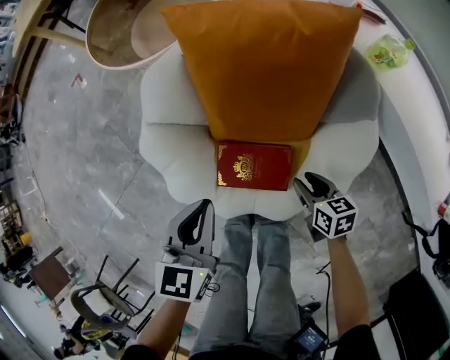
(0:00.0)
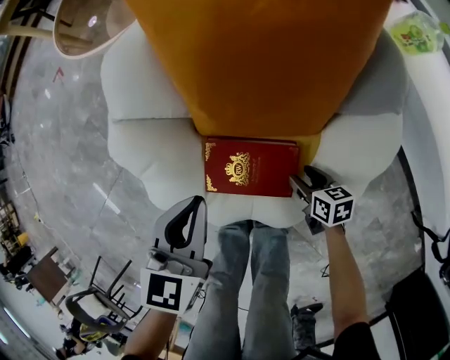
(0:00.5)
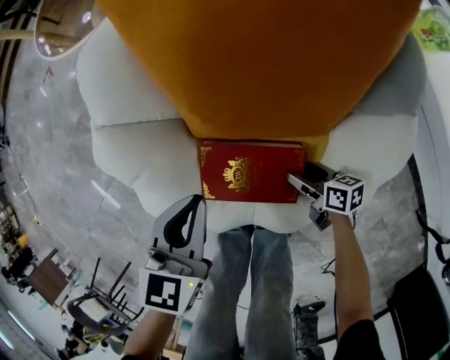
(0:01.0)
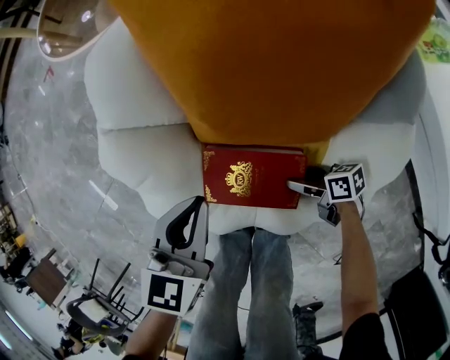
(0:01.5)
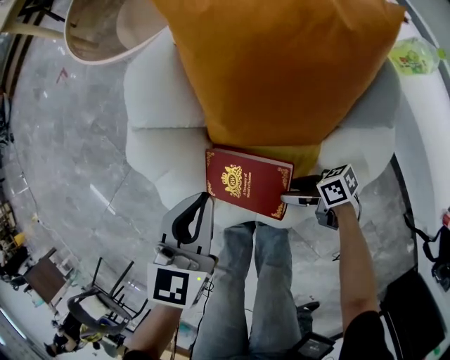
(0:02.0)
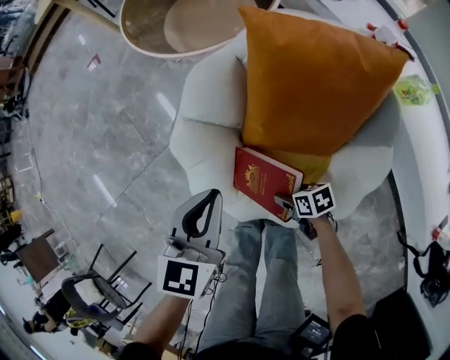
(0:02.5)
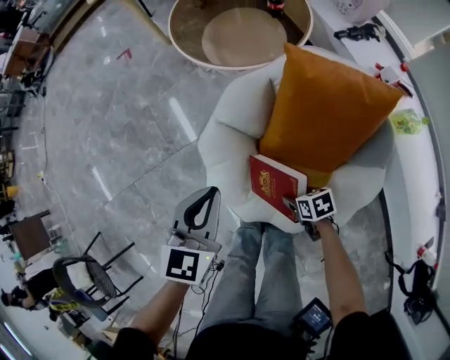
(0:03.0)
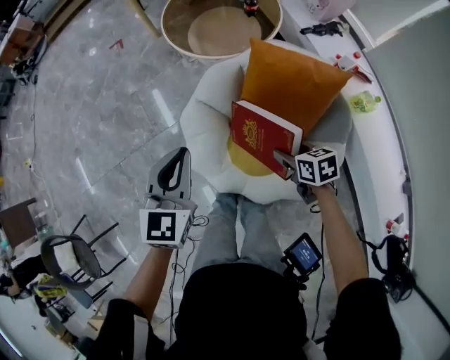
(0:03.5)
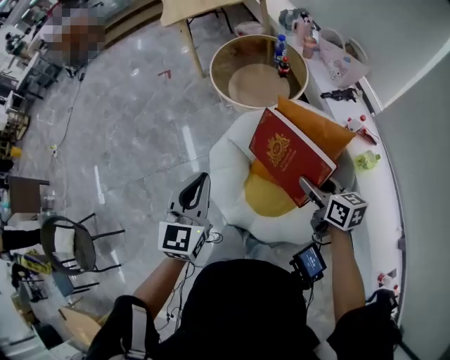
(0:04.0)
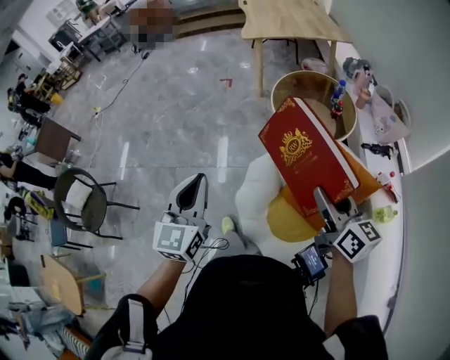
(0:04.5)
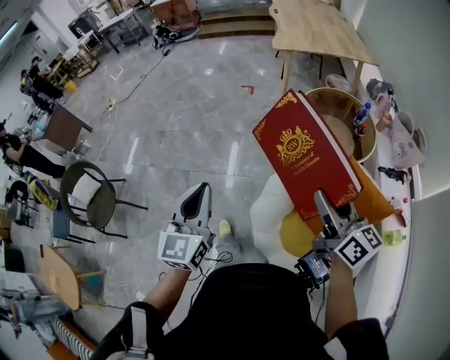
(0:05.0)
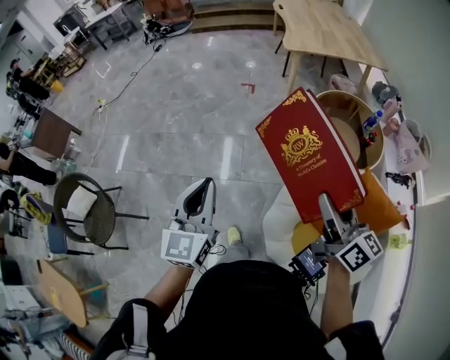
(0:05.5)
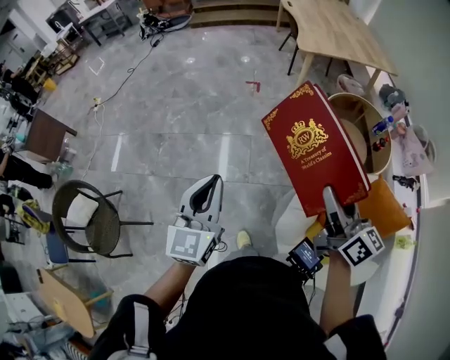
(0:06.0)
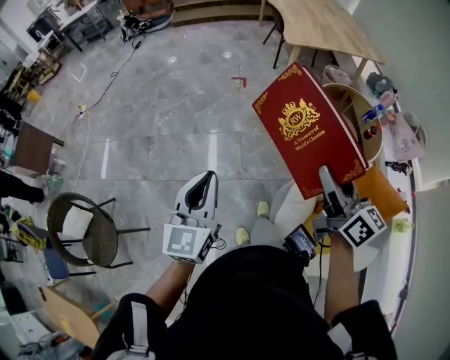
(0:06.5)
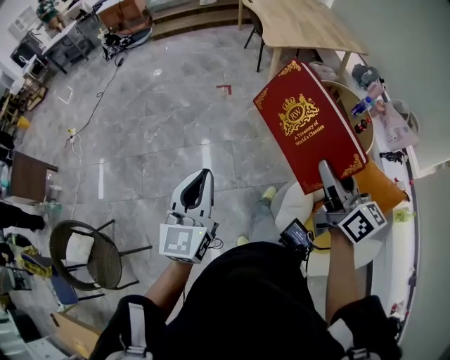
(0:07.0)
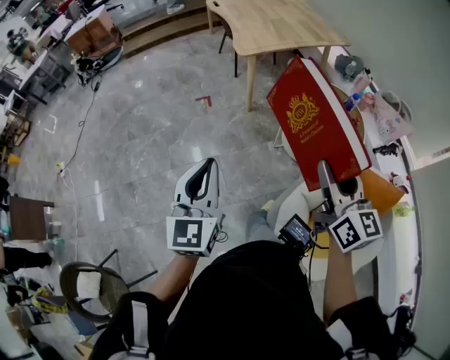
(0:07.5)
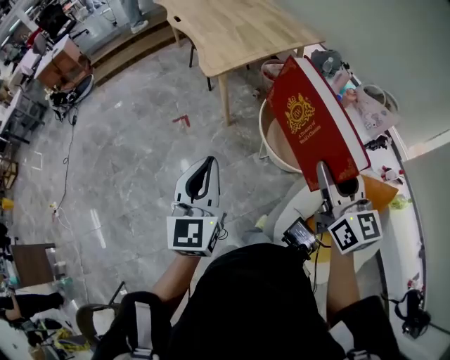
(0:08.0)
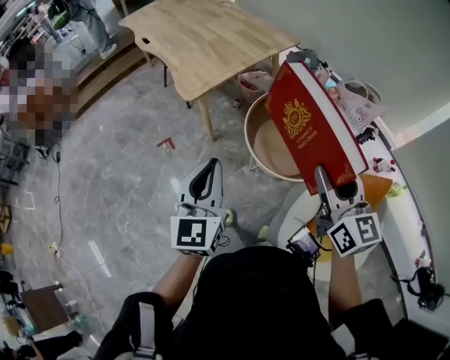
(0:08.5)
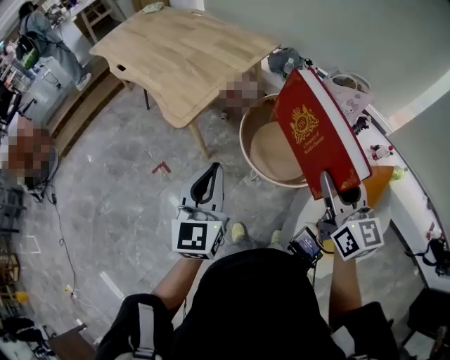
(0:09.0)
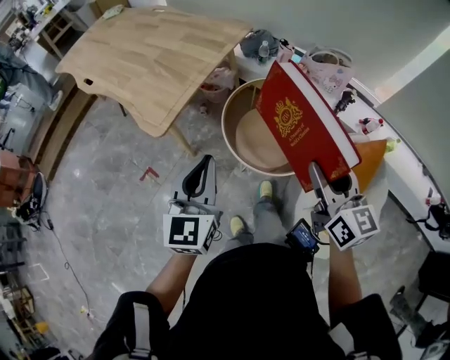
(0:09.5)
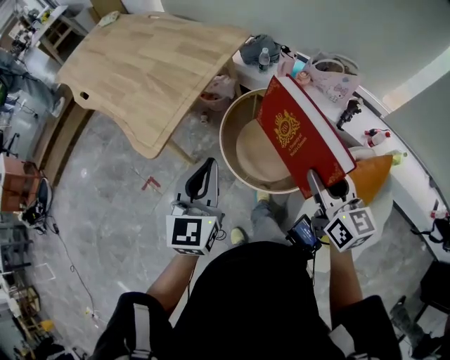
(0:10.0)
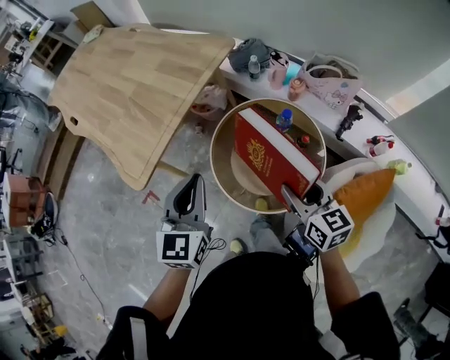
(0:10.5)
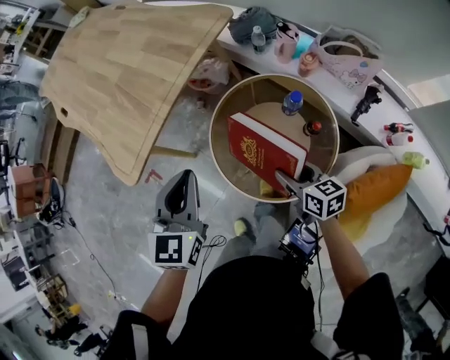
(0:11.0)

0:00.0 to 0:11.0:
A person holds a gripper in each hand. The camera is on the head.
0:00.0 to 0:02.0: The right gripper travels downward and to the left by about 10 cm, and swivels roughly 50 degrees, while the left gripper goes some 5 cm downward.
0:02.0 to 0:03.5: The right gripper goes approximately 35 cm upward, and rotates approximately 40 degrees. Meanwhile the left gripper travels upward and to the left by about 35 cm, and changes its angle by about 20 degrees.
0:03.5 to 0:05.5: The left gripper heads to the left and upward, covering about 40 cm, and changes its angle by some 40 degrees; the right gripper heads upward, to the left and forward, covering approximately 50 cm, and tilts its fingers some 50 degrees upward.
0:05.5 to 0:07.5: The grippers both shift forward by some 25 cm. The right gripper changes its angle by some 40 degrees.
0:07.5 to 0:09.0: The right gripper ends up some 20 cm from where it was, and rotates about 30 degrees. Meanwhile the left gripper changes place by about 35 cm, and changes its angle by about 30 degrees.
0:09.0 to 0:11.0: The right gripper heads downward and forward, covering about 40 cm, and rotates approximately 40 degrees. The left gripper heads forward, to the right and downward, covering approximately 35 cm.

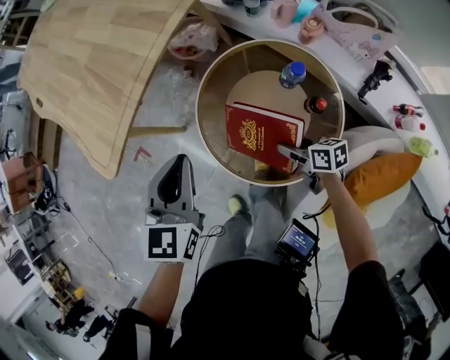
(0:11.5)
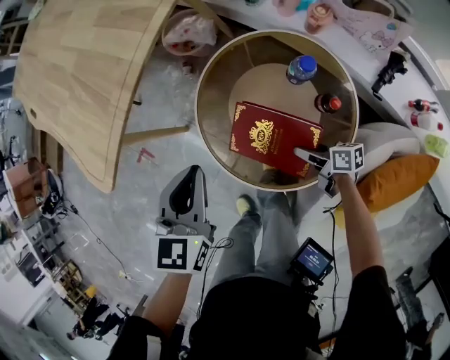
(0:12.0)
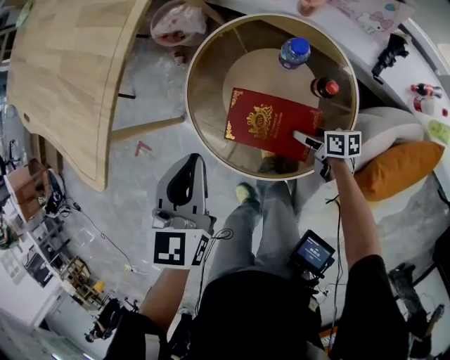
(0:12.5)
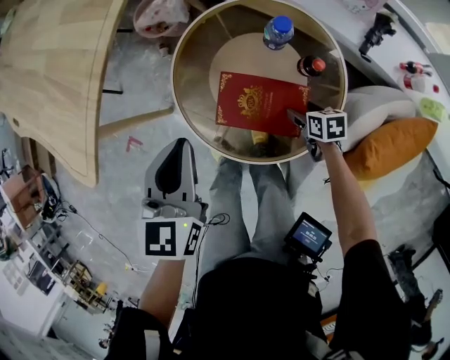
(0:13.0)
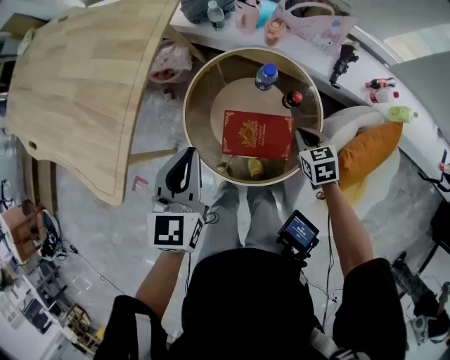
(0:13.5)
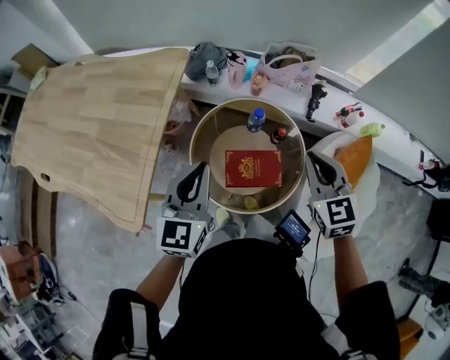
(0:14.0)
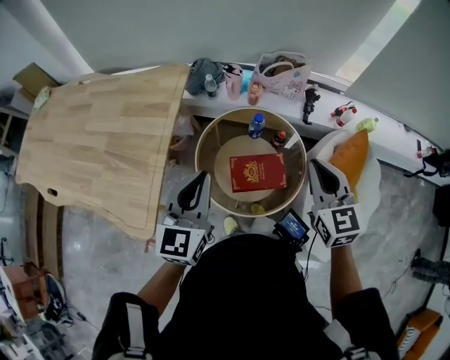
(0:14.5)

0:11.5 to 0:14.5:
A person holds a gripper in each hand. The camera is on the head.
0:11.5 to 0:13.0: The left gripper travels downward by roughly 5 cm; the right gripper goes approximately 15 cm downward and to the right, and rotates approximately 30 degrees.
0:13.0 to 0:14.5: The right gripper is displaced upward by roughly 50 cm, tips its fingers upward by about 40 degrees, and closes up; the left gripper goes roughly 20 cm upward, and rotates approximately 30 degrees.

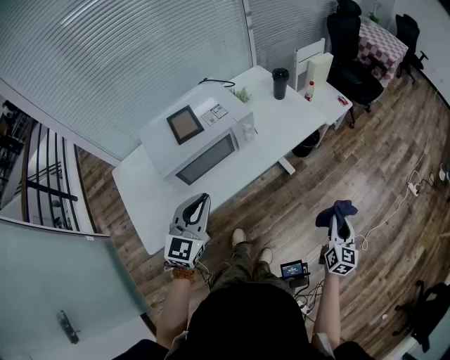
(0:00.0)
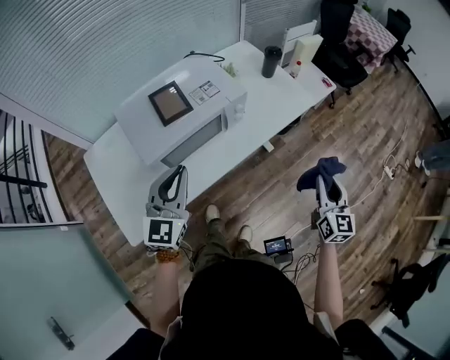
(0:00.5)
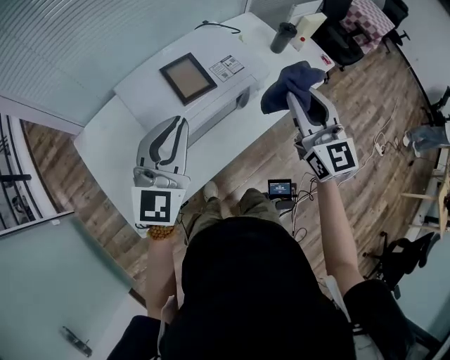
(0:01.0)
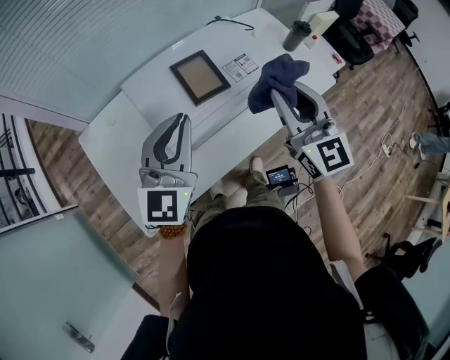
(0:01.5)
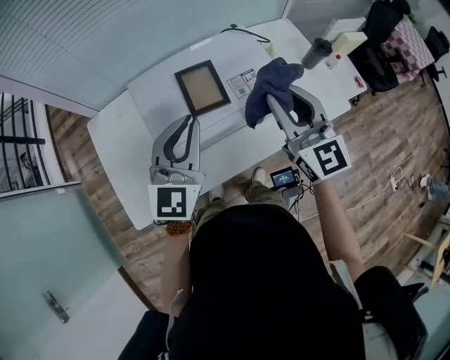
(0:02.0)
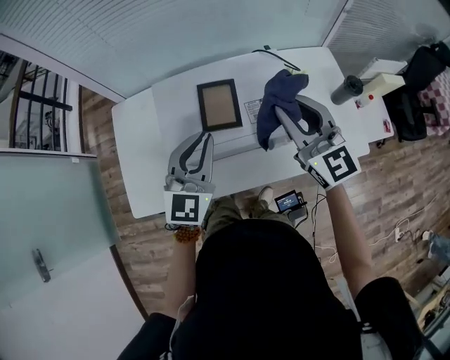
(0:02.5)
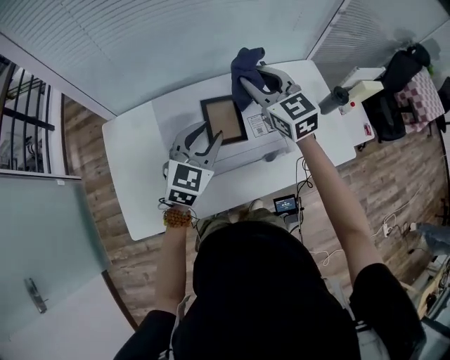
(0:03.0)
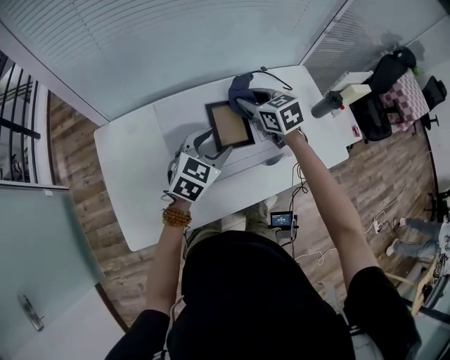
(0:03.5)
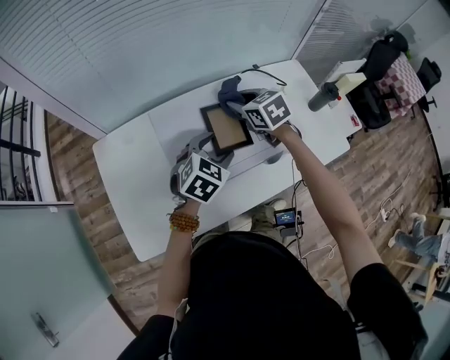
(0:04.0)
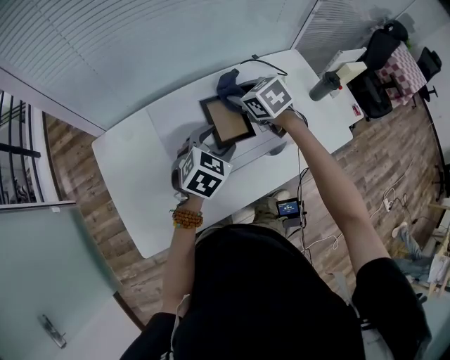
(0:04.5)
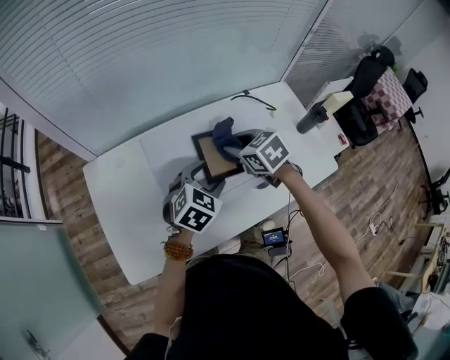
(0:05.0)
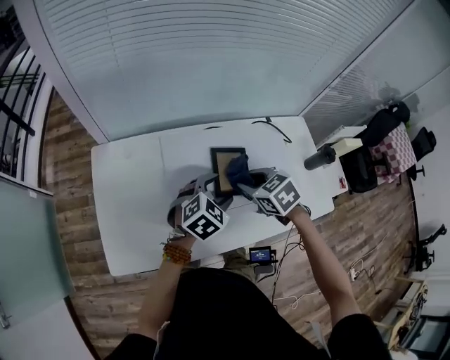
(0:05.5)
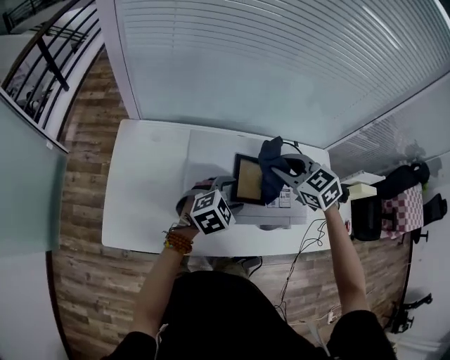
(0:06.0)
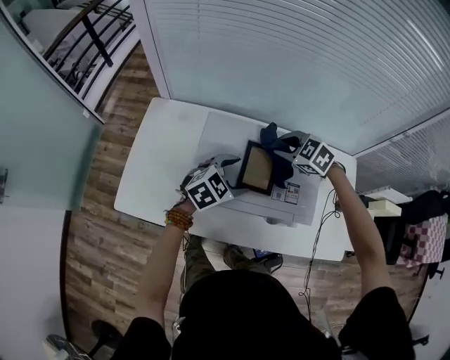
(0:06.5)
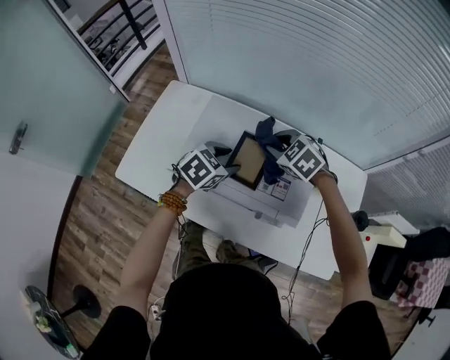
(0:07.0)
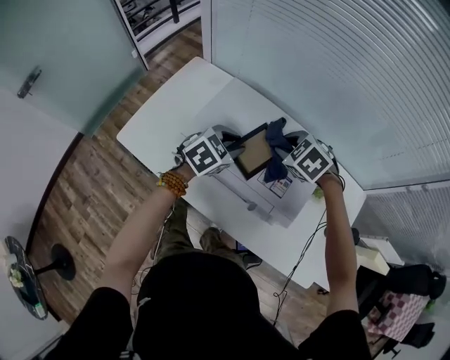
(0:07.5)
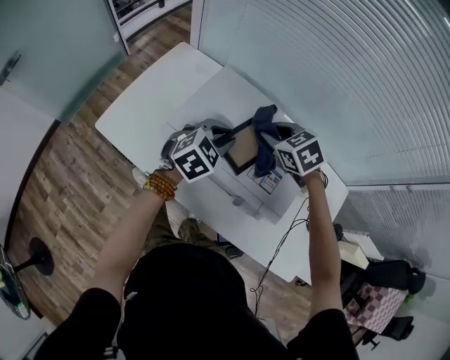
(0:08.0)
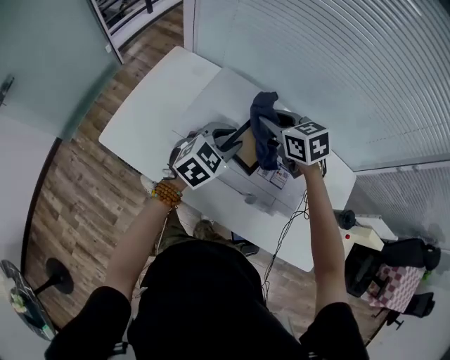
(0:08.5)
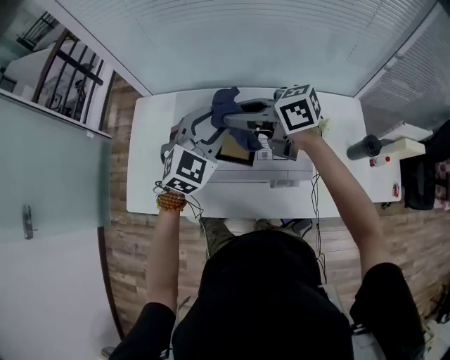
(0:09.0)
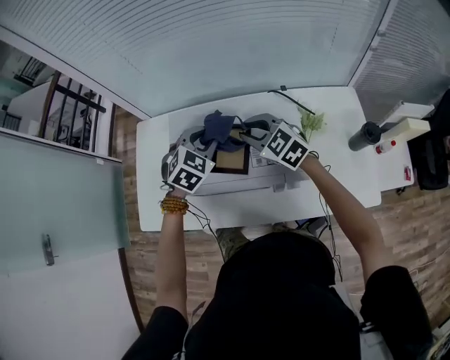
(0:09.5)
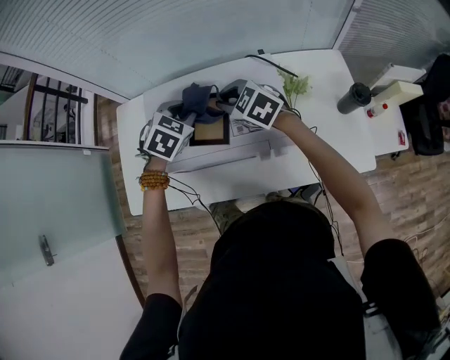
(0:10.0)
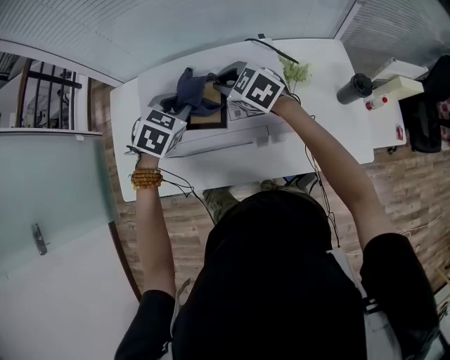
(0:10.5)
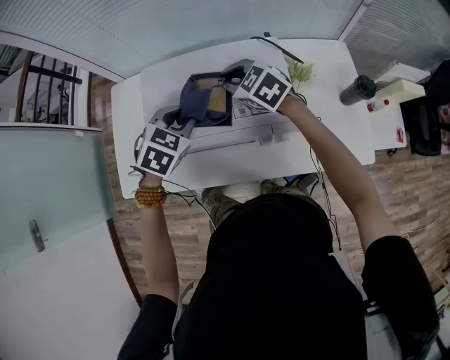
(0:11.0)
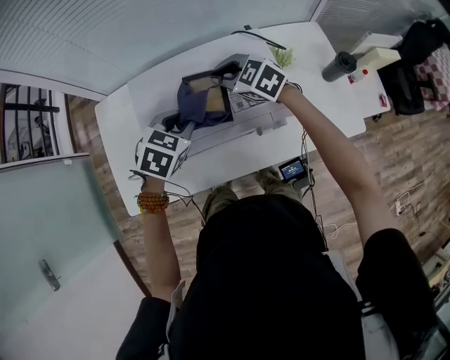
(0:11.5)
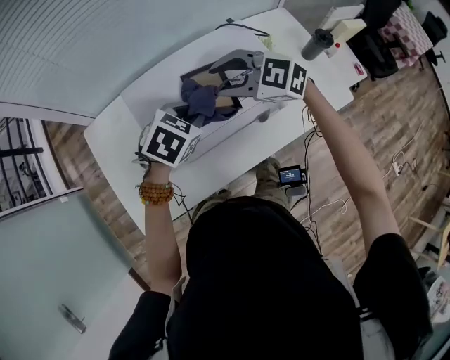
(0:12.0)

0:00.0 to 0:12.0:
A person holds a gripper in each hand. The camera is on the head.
0:00.0 to 0:02.0: The left gripper moves some 25 cm. Meanwhile the right gripper moves approximately 60 cm, and swivels approximately 60 degrees.
0:02.0 to 0:04.0: The right gripper is displaced forward, downward and to the left by about 30 cm, and tips its fingers downward by some 40 degrees, while the left gripper is displaced downward and forward by about 15 cm, points its fingers approximately 40 degrees further downward, and opens.
0:04.0 to 0:06.0: The right gripper travels upward by roughly 5 cm, reaches roughly 10 cm backward, then returns, and turns by roughly 40 degrees.
0:06.0 to 0:08.0: The left gripper swivels roughly 40 degrees, and closes its fingers. Meanwhile the right gripper shifts roughly 5 cm downward, and changes its angle by approximately 20 degrees.
0:08.0 to 0:10.0: The left gripper reaches roughly 10 cm upward, then returns, and swivels approximately 30 degrees; the right gripper travels upward and back again, roughly 15 cm each way, and turns by approximately 20 degrees.
0:10.0 to 0:12.0: The right gripper heads upward and backward, covering about 5 cm, and opens. The left gripper heads backward, covering roughly 10 cm, and rotates approximately 30 degrees.
